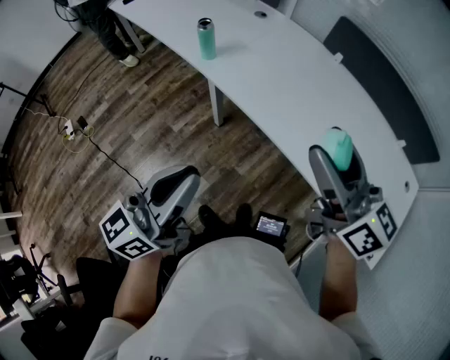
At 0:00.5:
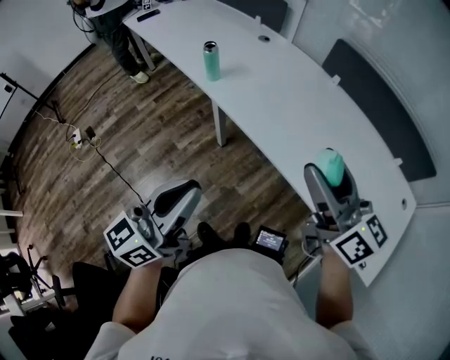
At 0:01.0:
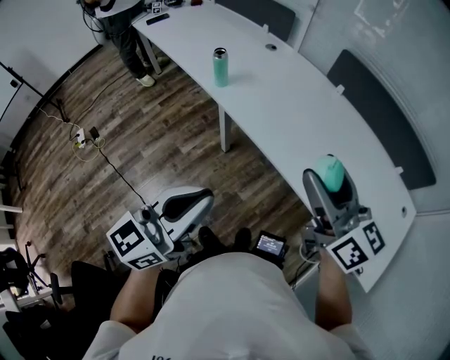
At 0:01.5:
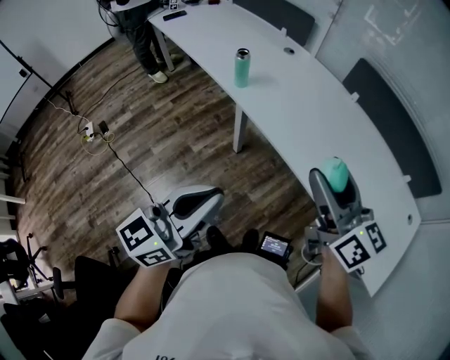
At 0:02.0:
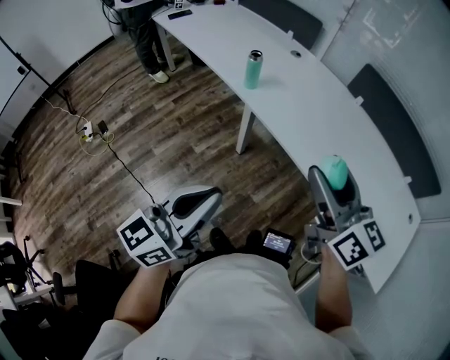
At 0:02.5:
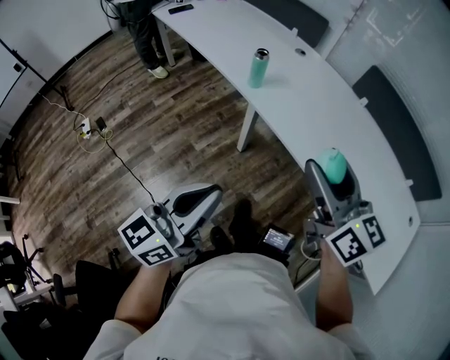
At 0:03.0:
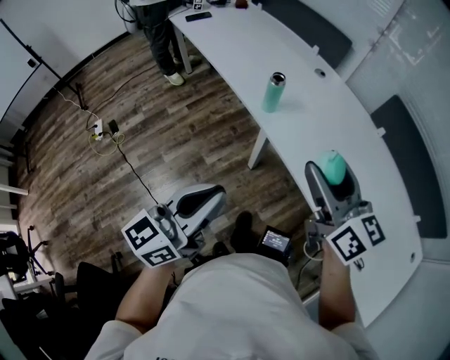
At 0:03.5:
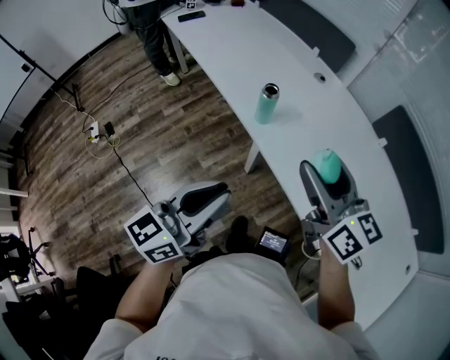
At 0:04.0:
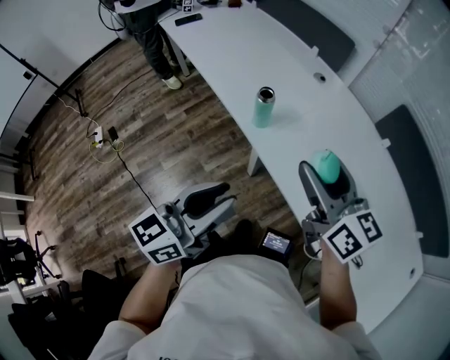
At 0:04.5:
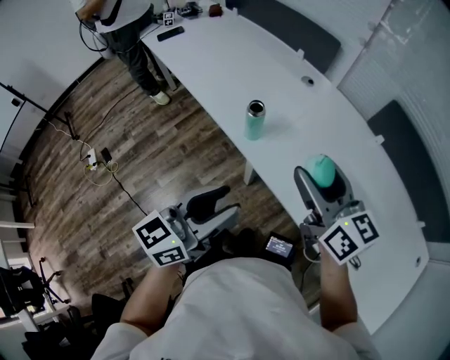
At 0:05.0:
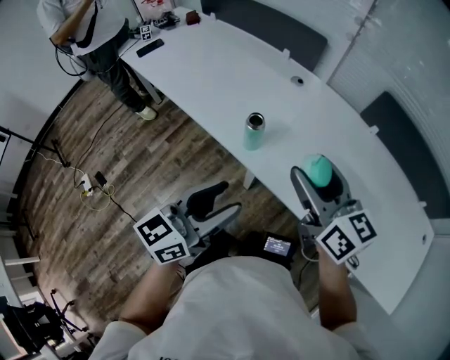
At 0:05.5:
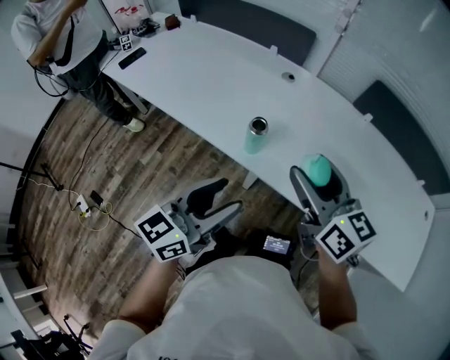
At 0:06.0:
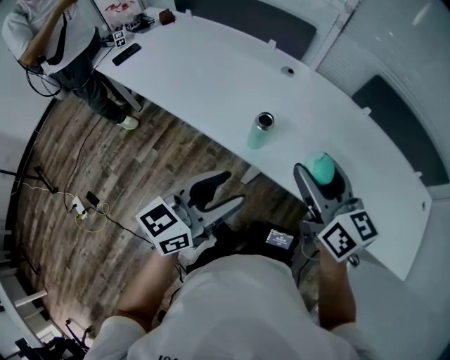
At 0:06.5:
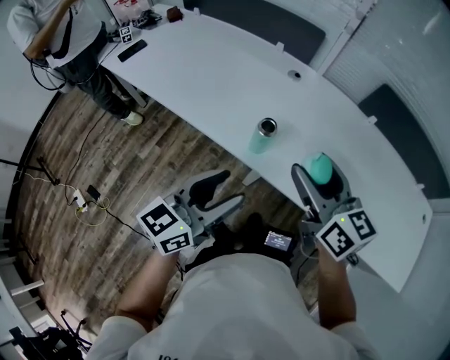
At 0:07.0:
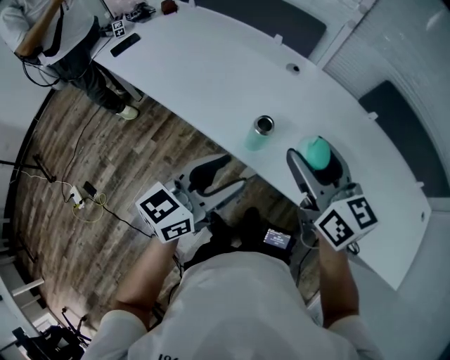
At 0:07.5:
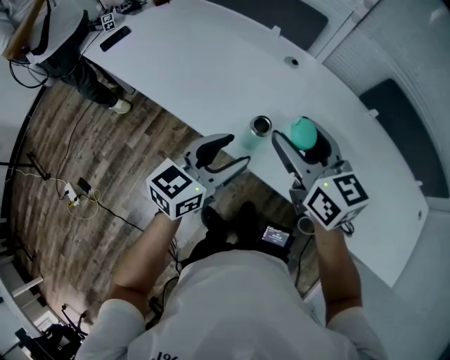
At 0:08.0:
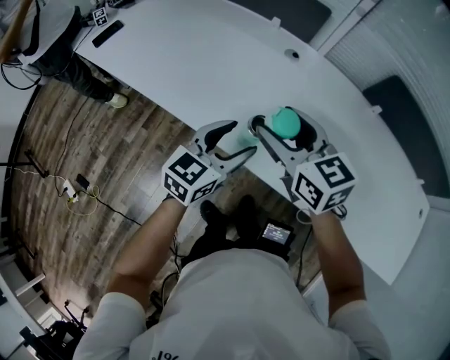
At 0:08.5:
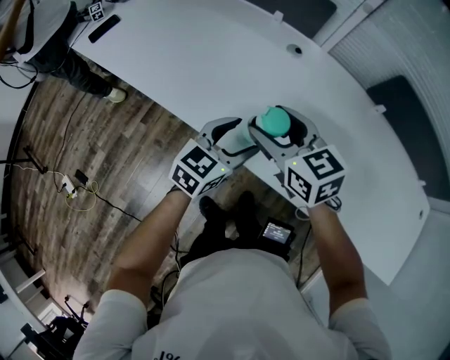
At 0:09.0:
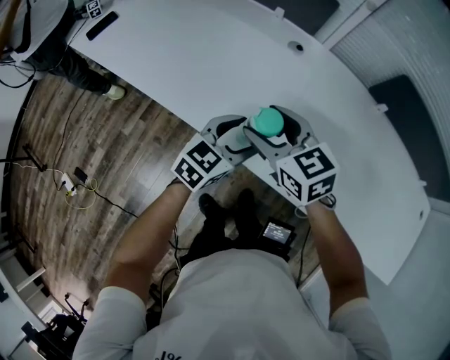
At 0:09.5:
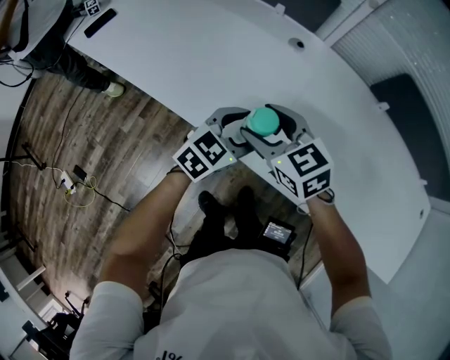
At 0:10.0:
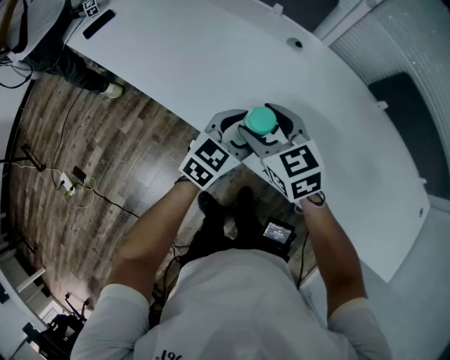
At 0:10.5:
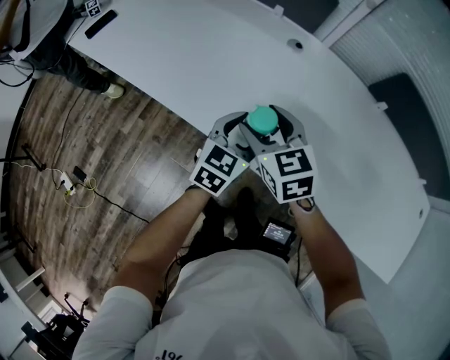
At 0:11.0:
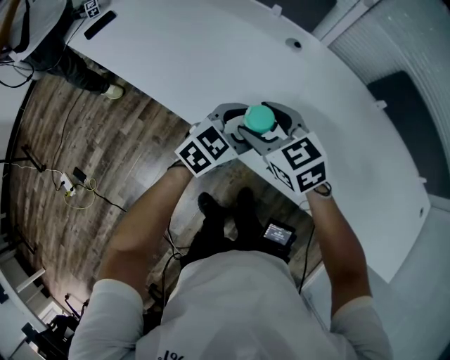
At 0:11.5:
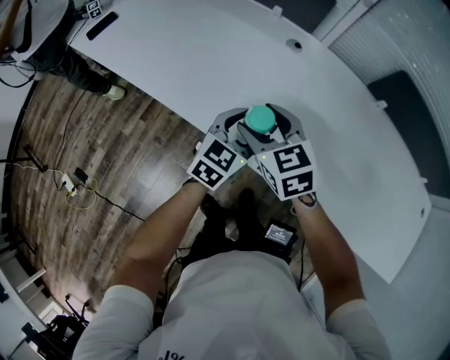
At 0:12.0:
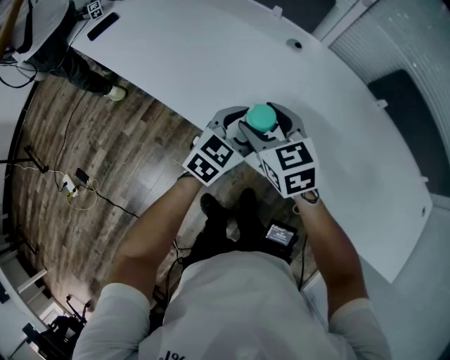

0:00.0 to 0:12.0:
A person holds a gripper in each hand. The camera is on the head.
0:00.0 to 0:02.0: The left gripper goes about 10 cm to the left and backward. The right gripper heads to the left, covering some 10 cm.
0:02.0 to 0:04.0: The grippers both shift forward by some 25 cm.
0:04.0 to 0:06.0: The left gripper shifts by approximately 15 cm, rotates about 30 degrees, and opens up. Meanwhile the right gripper moves roughly 10 cm, and swivels about 20 degrees.
0:06.0 to 0:08.0: The left gripper shifts approximately 20 cm forward and downward; the right gripper moves forward, downward and to the left, approximately 20 cm.
0:08.0 to 0:10.0: The grippers both shift downward by some 10 cm.
0:10.0 to 0:12.0: The grippers move only a little.

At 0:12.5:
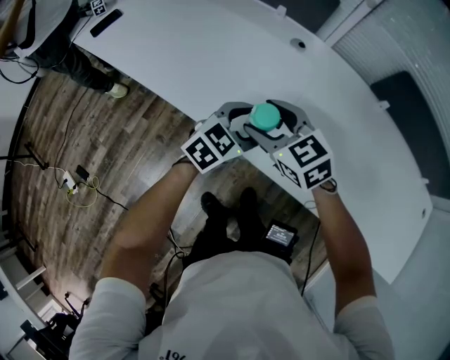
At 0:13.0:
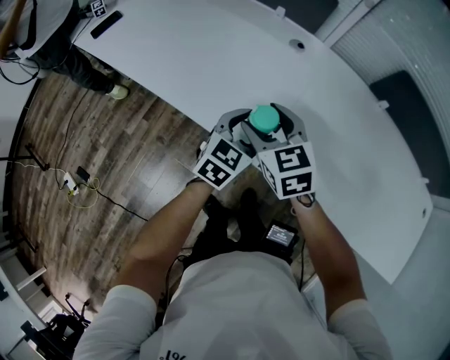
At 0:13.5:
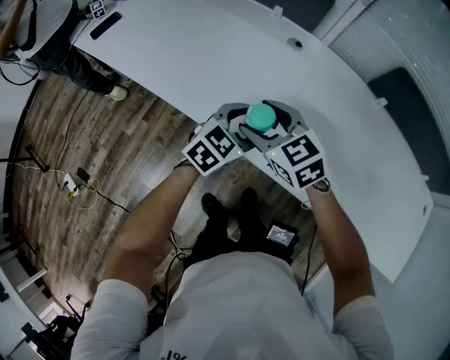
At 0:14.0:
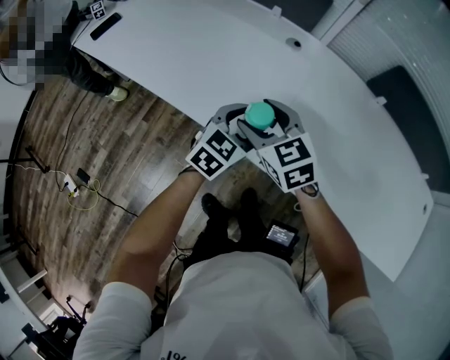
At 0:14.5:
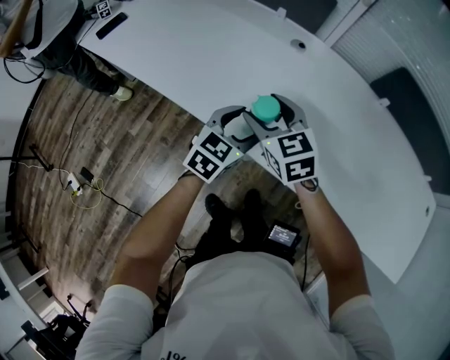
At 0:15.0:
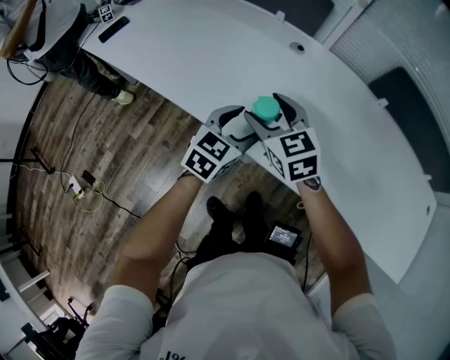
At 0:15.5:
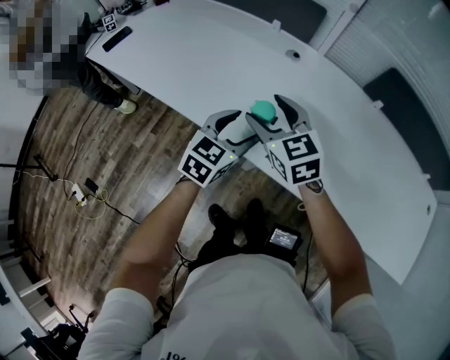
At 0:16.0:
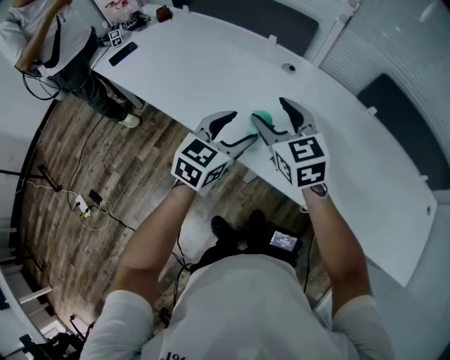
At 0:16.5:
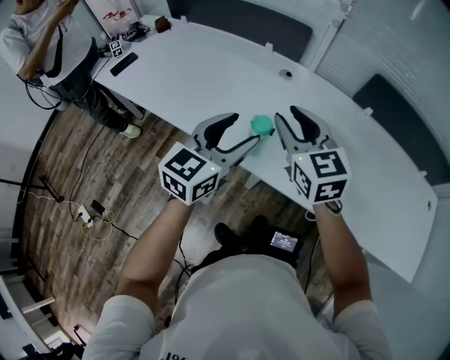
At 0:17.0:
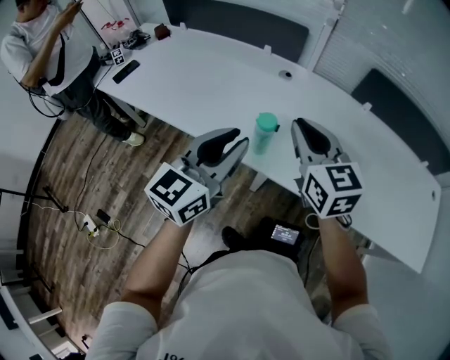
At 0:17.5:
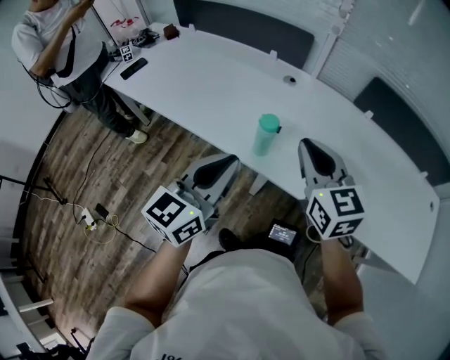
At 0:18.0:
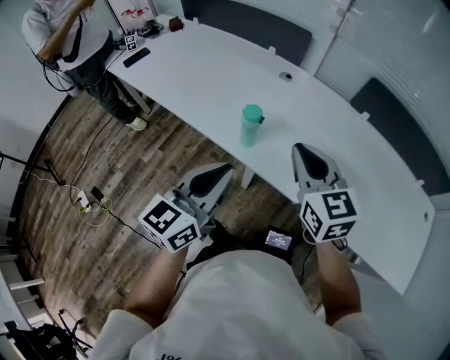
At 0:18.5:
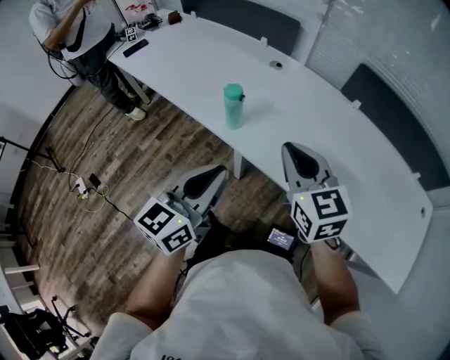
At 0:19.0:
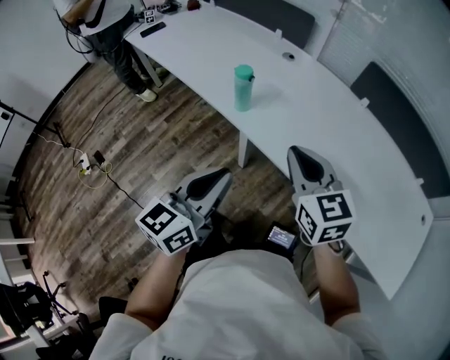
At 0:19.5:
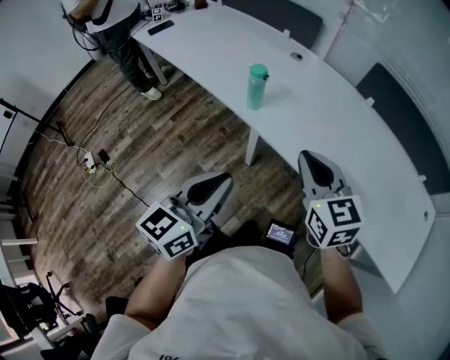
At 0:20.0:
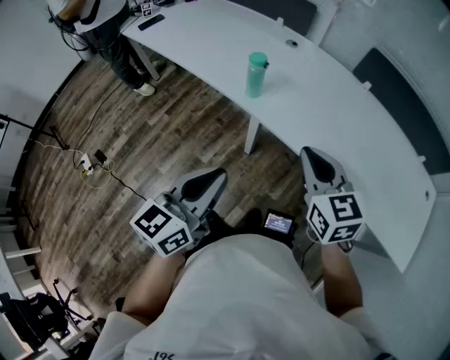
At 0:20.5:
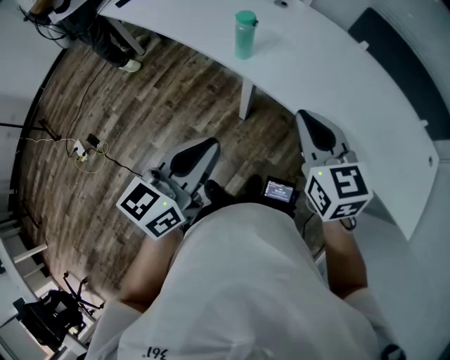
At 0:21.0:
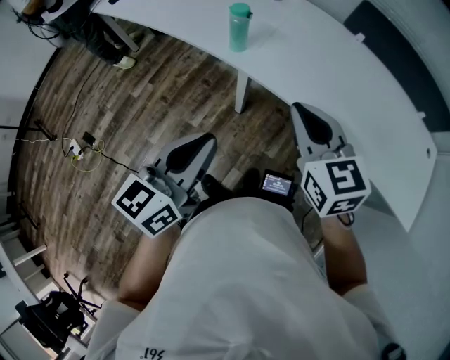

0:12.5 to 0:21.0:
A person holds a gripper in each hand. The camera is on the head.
0:12.5 to 0:14.5: There are only small adjustments of the grippers.
0:14.5 to 0:16.5: Both grippers travel together upward, roughly 15 cm. The right gripper closes up.
0:16.5 to 0:19.0: The two grippers go about 30 cm backward and to the right. The right gripper closes its fingers. The left gripper turns by roughly 20 degrees, and closes up.
0:19.0 to 0:21.0: The left gripper is displaced to the left and backward by some 10 cm, while the right gripper moves backward, some 5 cm.

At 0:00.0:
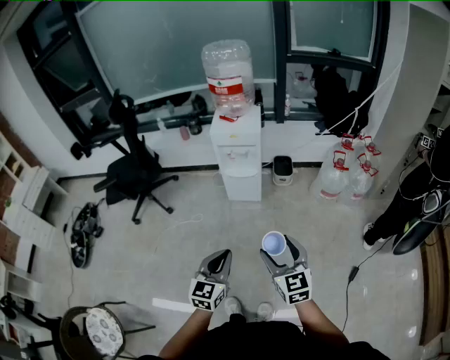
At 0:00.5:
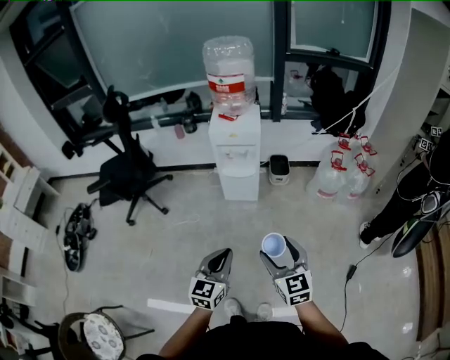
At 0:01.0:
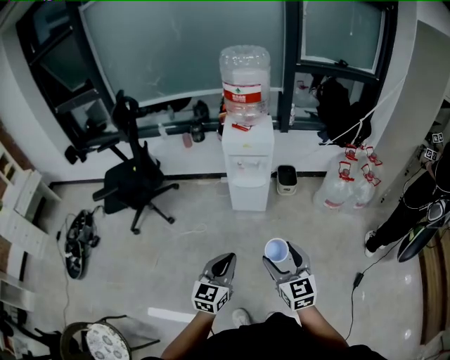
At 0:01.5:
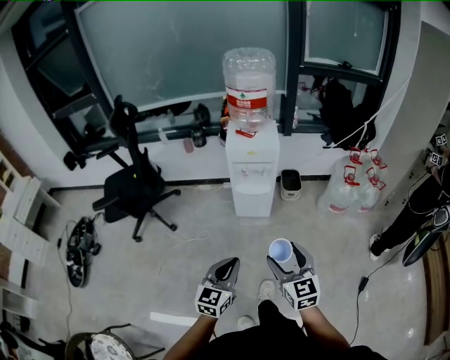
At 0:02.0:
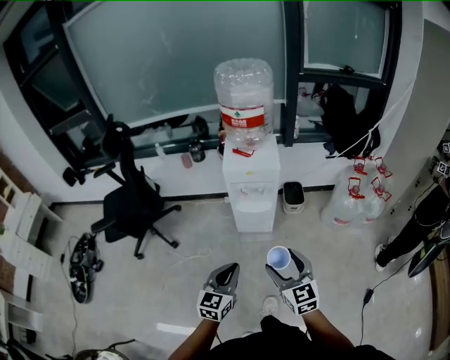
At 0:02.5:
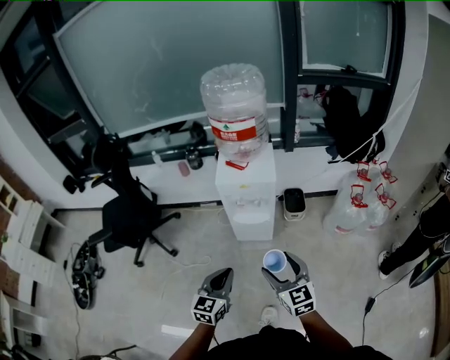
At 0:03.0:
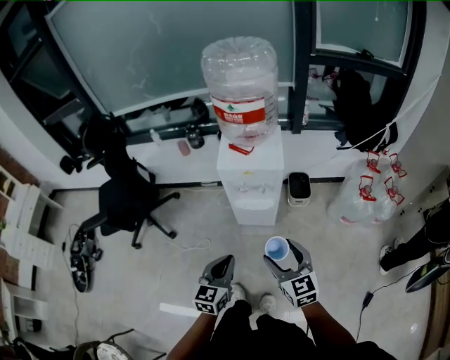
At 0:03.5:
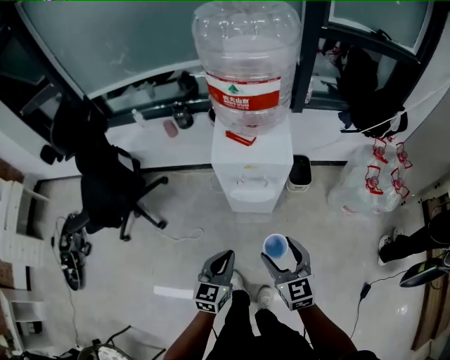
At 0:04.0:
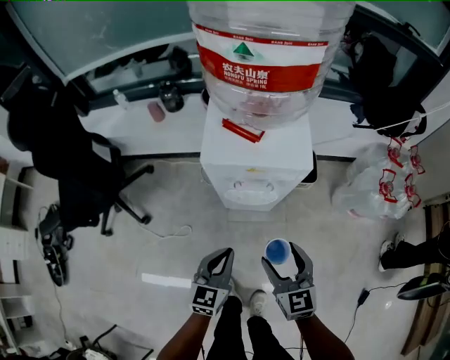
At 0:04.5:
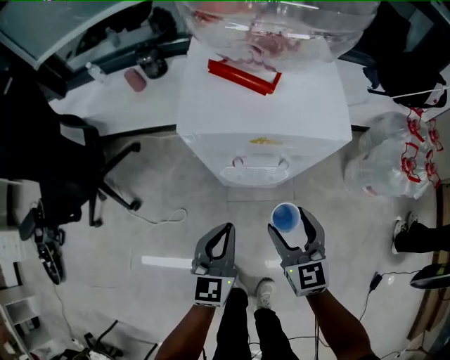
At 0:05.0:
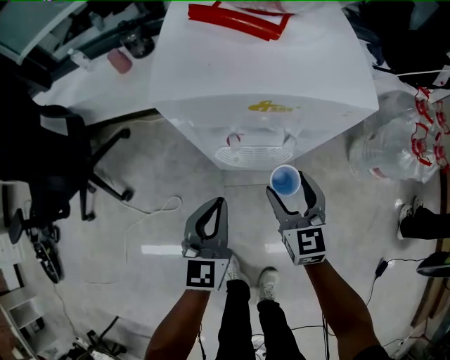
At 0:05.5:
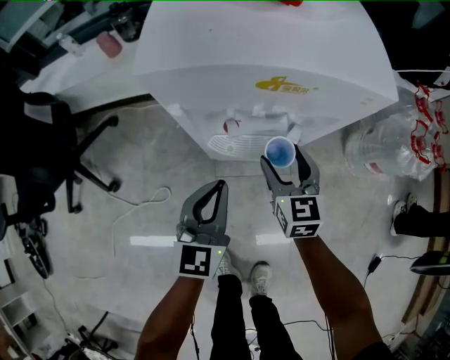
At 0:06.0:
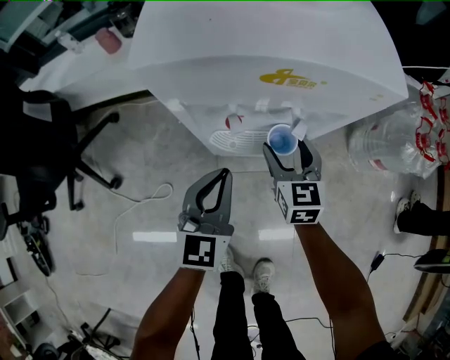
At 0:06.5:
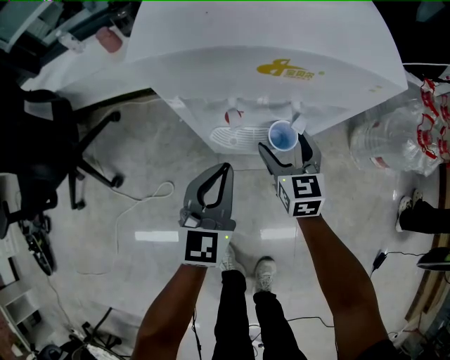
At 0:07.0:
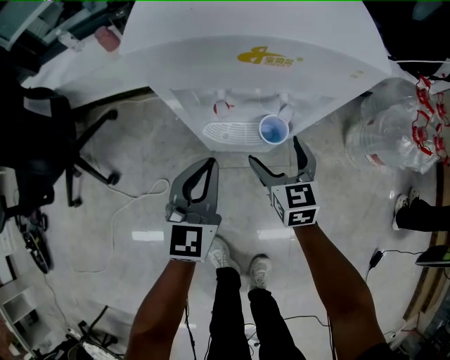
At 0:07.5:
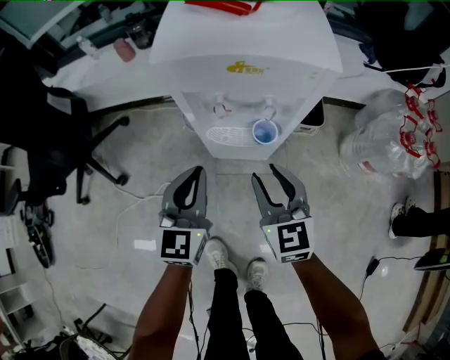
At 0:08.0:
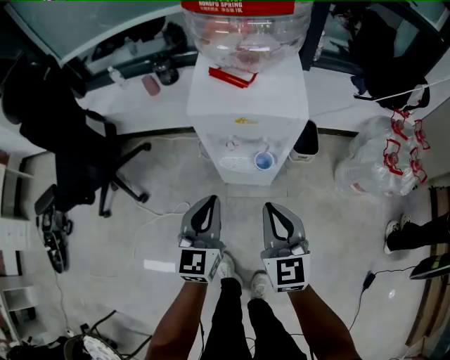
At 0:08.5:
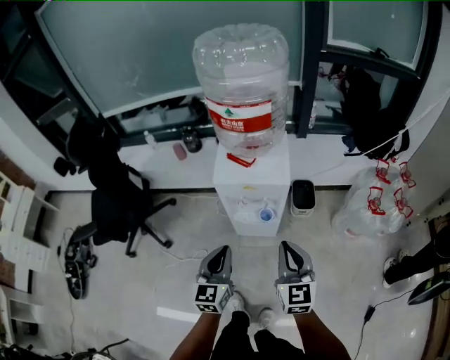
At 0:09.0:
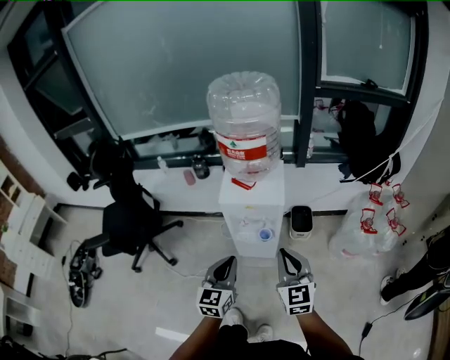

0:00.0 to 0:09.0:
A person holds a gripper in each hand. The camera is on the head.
0:00.0 to 0:02.0: Both grippers travel together forward and to the left, about 20 cm.
0:02.0 to 0:04.5: Both grippers move forward and downward, some 40 cm.
0:04.5 to 0:07.0: The right gripper shifts some 15 cm downward and forward, while the left gripper goes about 5 cm forward.
0:07.0 to 0:09.0: The grippers both shift upward and backward by about 40 cm. The right gripper rotates about 20 degrees, and closes up.
